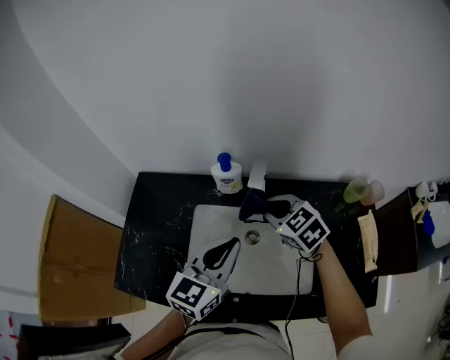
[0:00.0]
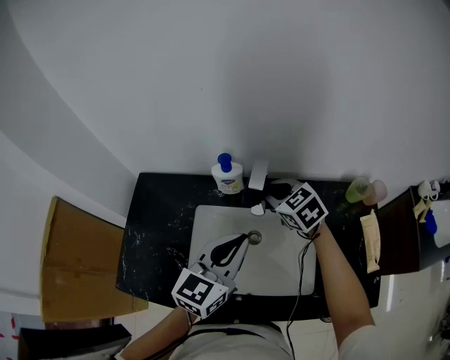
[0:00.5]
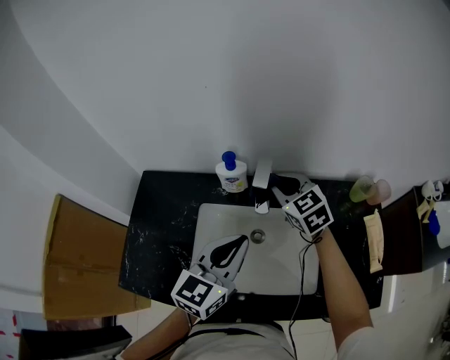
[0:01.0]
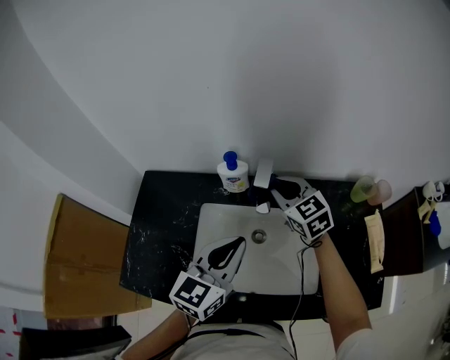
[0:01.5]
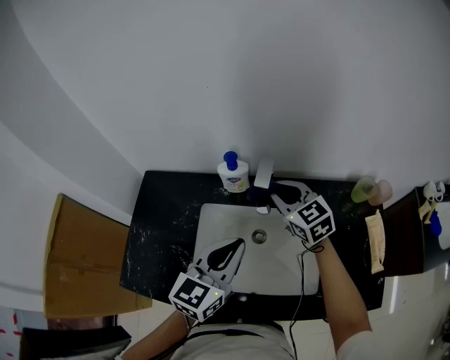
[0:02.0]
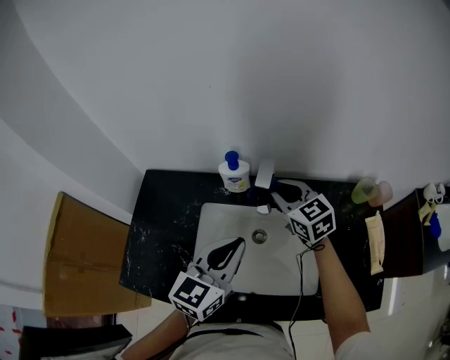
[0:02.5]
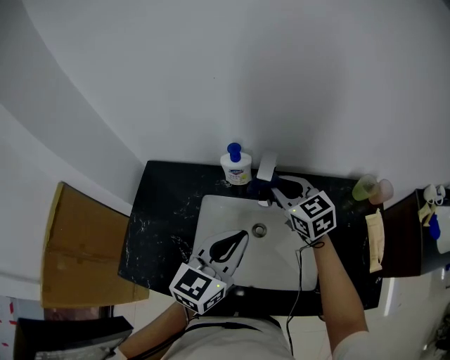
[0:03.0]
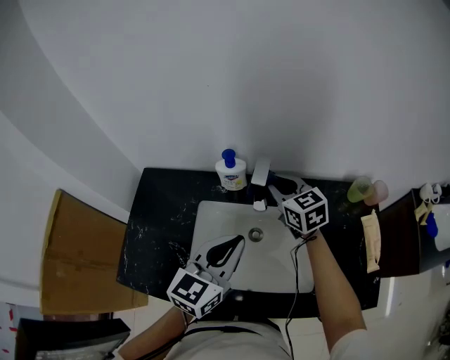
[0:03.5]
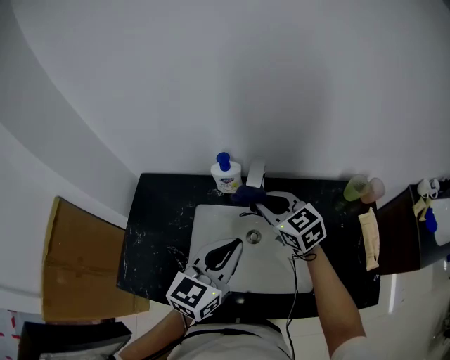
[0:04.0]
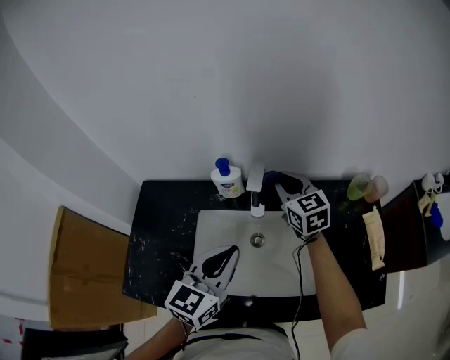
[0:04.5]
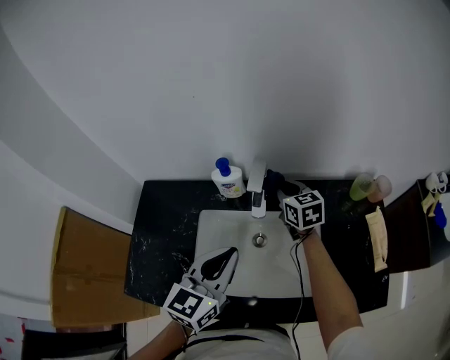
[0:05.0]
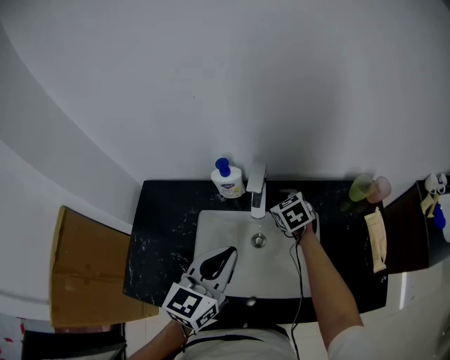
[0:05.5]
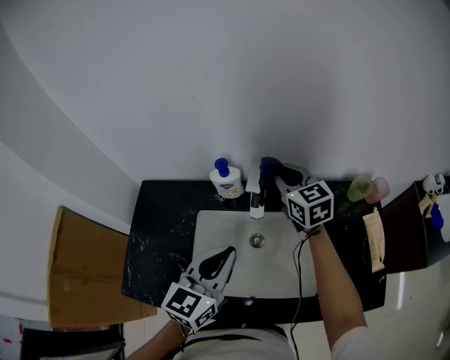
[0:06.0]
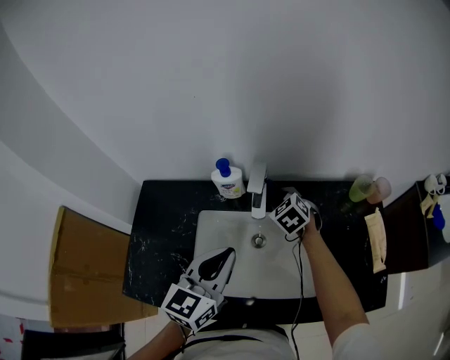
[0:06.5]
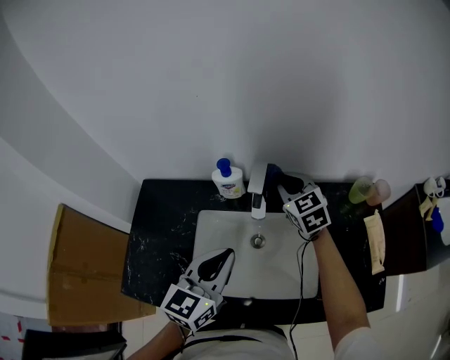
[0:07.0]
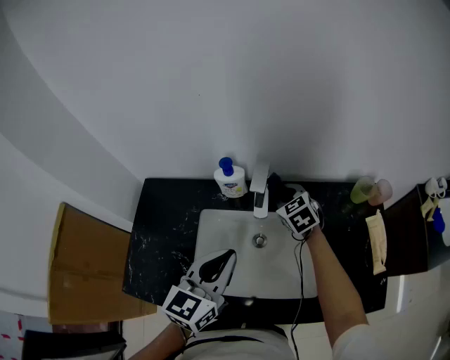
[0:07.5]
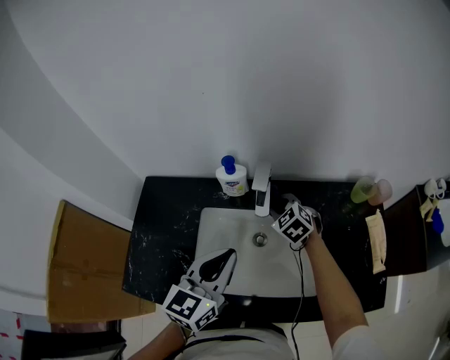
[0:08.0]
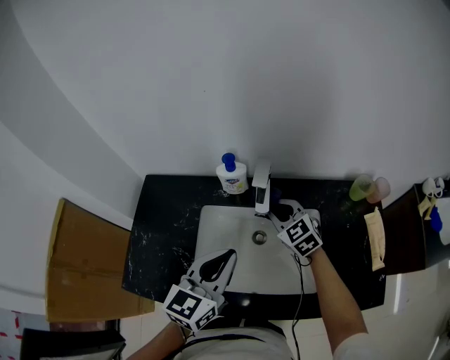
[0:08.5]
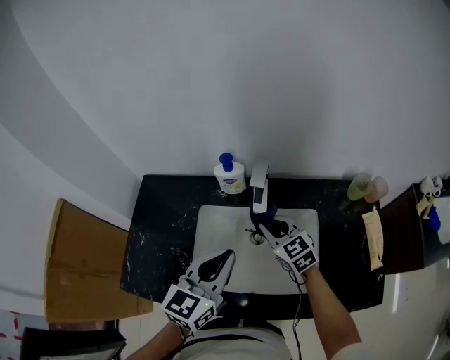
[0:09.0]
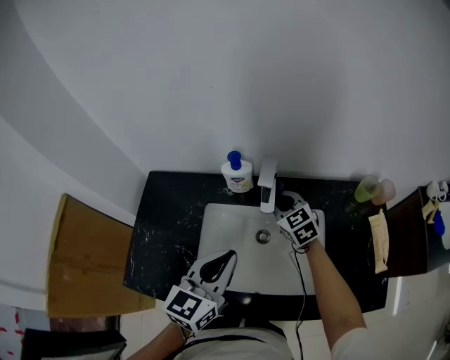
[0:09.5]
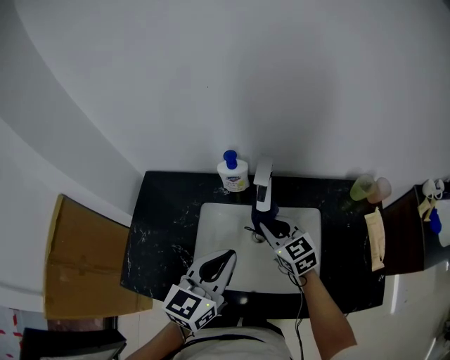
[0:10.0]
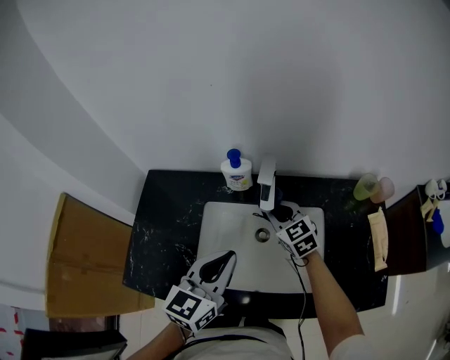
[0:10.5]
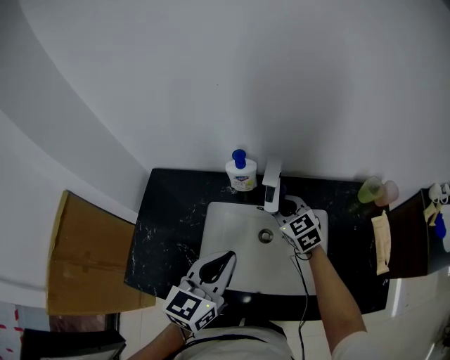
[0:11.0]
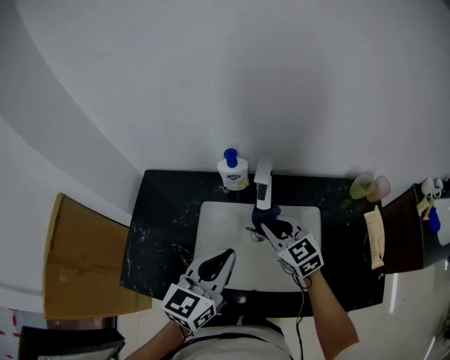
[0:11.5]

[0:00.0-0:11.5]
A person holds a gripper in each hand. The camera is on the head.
0:00.0 to 0:02.0: The right gripper moves some 5 cm.
0:02.0 to 0:04.0: The grippers move only a little.
0:04.0 to 0:06.0: The right gripper is displaced forward and to the right by approximately 10 cm, and goes downward and returns, roughly 10 cm each way.
0:06.0 to 0:07.5: The right gripper goes up and down, about 15 cm each way, reversing 2 times, and swivels approximately 30 degrees.
0:07.5 to 0:09.5: The right gripper moves about 10 cm backward and comes back.
0:09.5 to 0:11.5: The right gripper goes forward and backward, roughly 10 cm each way, reversing 2 times.

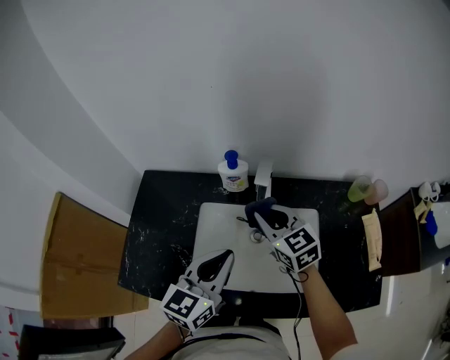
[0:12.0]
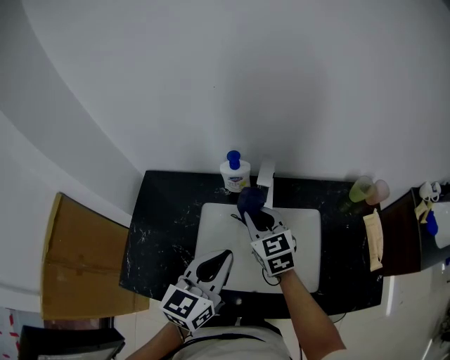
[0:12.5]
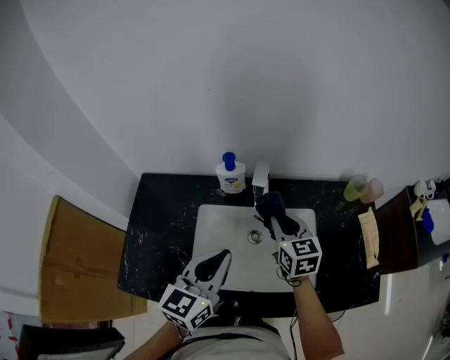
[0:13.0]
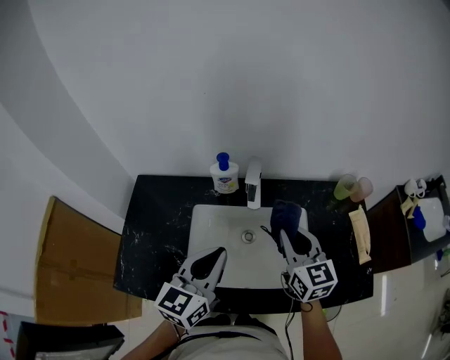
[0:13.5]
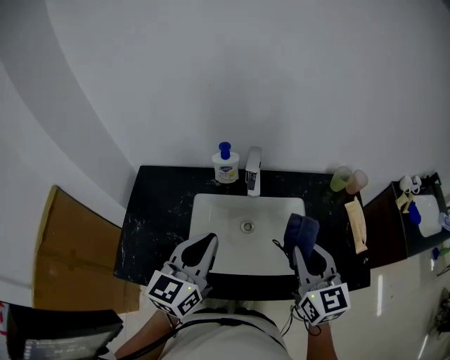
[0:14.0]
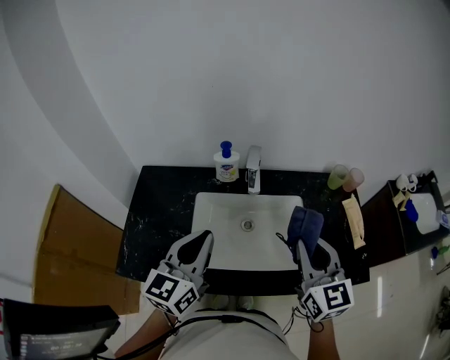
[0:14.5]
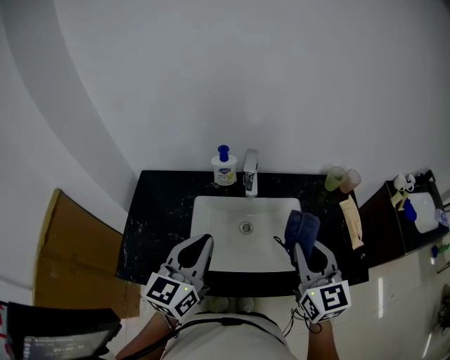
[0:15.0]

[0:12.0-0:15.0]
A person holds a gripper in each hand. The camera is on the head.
0:12.0 to 0:13.5: The right gripper heads to the right and backward, covering roughly 10 cm, and turns by approximately 20 degrees.
0:13.5 to 0:15.0: The left gripper moves about 5 cm, while the right gripper travels backward and upward by roughly 15 cm.

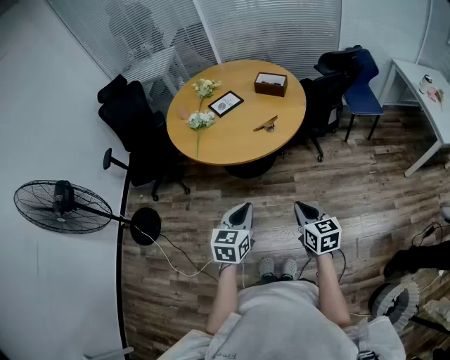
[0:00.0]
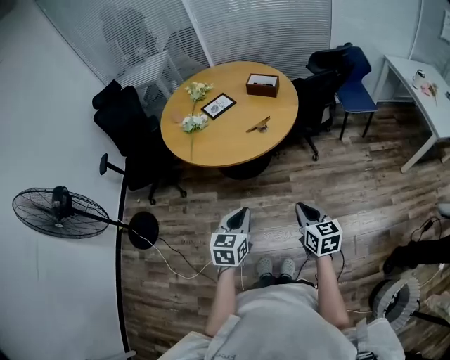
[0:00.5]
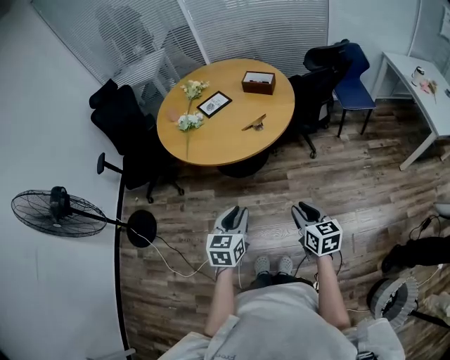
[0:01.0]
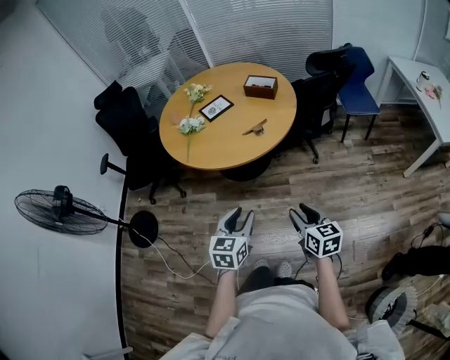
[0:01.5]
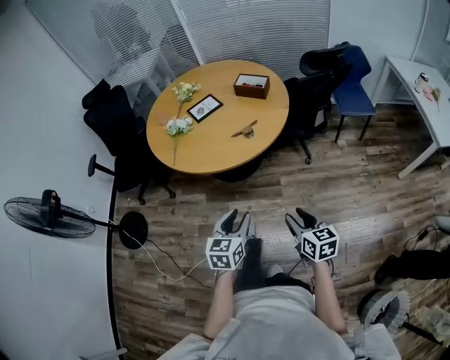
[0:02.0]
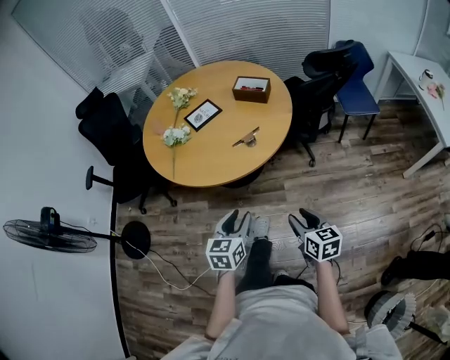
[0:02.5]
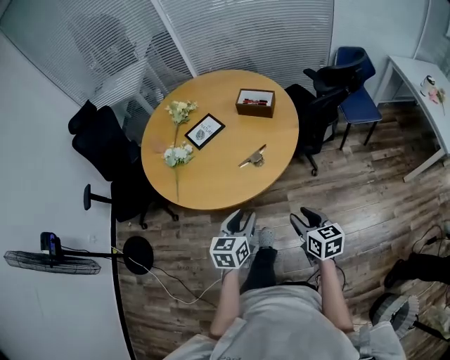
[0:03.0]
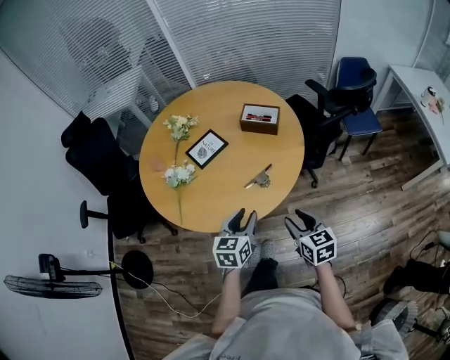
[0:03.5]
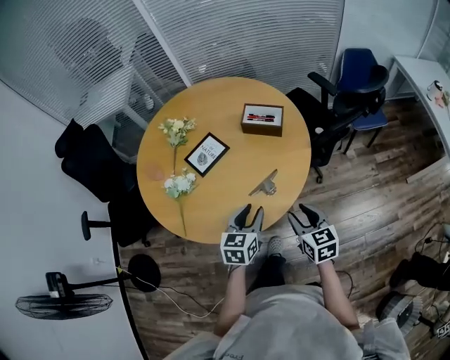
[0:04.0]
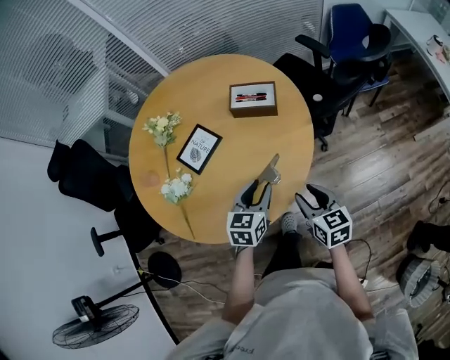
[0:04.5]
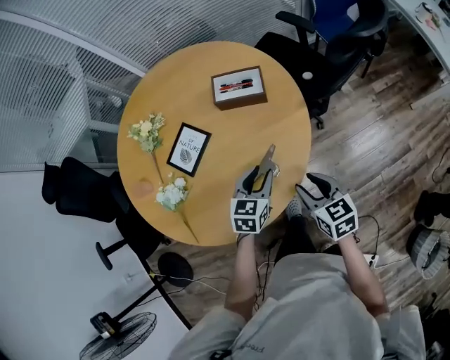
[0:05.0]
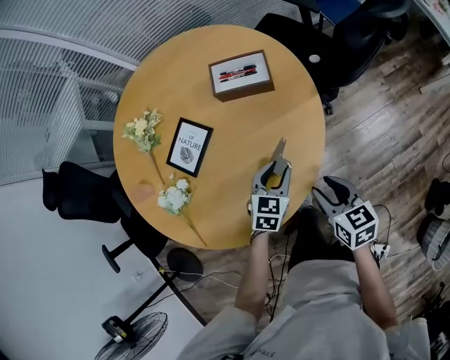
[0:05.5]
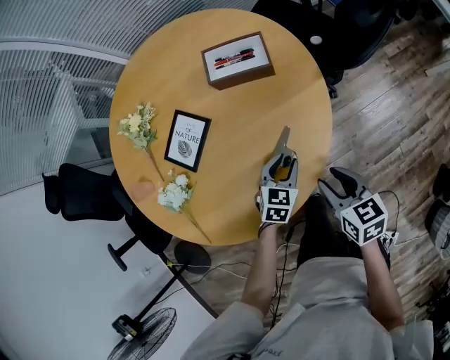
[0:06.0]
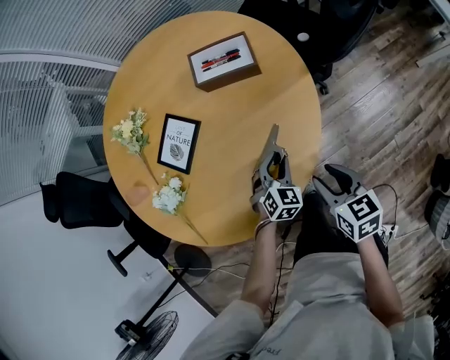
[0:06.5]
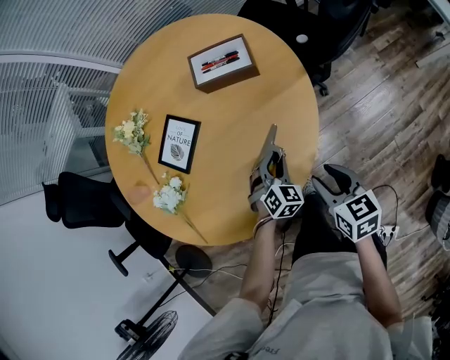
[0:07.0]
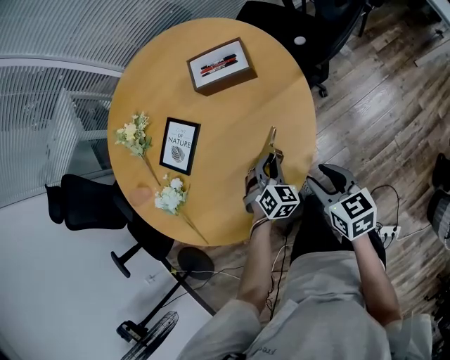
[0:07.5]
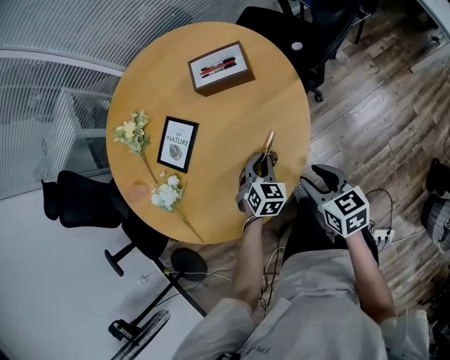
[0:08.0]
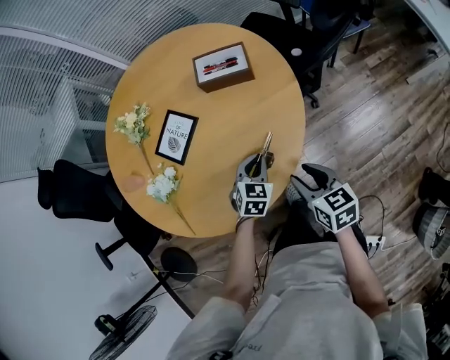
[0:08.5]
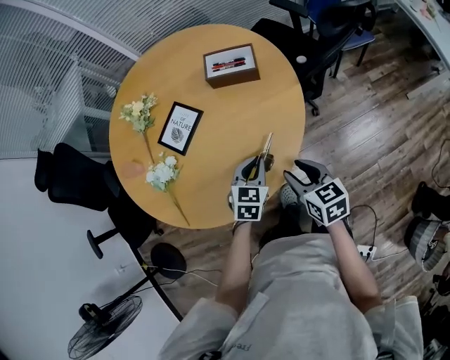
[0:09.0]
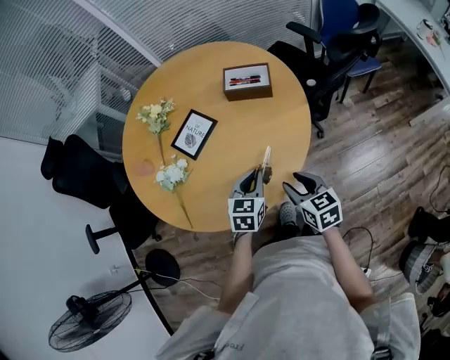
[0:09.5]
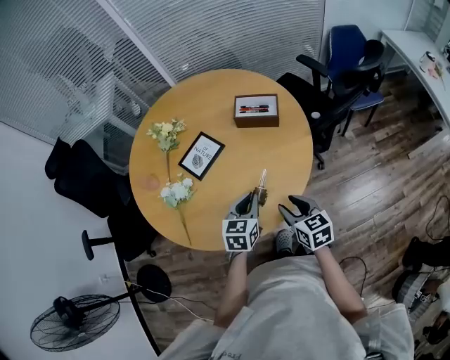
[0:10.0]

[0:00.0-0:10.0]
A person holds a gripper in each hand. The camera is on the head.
0:00.0 to 0:02.0: The left gripper moves to the right and downward, approximately 10 cm, and opens up. The right gripper is displaced to the right by roughly 10 cm, and opens.
0:02.0 to 0:04.0: Both grippers move forward, some 40 cm.
0:04.0 to 0:06.0: The left gripper travels downward and forward by some 25 cm, and turns by some 30 degrees. Meanwhile the right gripper moves downward and forward, approximately 15 cm, and changes its angle by about 20 degrees.
0:06.0 to 0:08.0: The left gripper changes its angle by about 20 degrees, and closes.
0:08.0 to 0:10.0: The right gripper heads to the left, covering roughly 5 cm; the left gripper shifts some 15 cm upward and to the left, and rotates roughly 40 degrees.

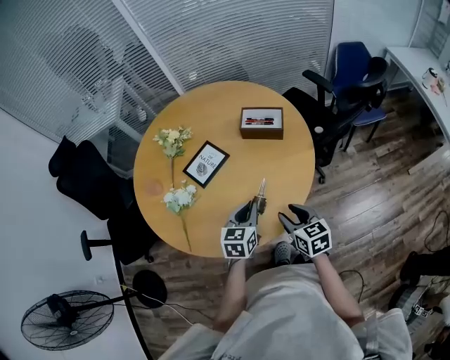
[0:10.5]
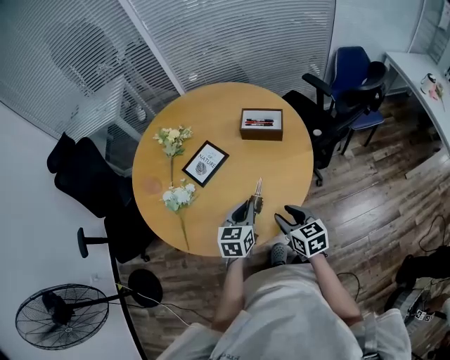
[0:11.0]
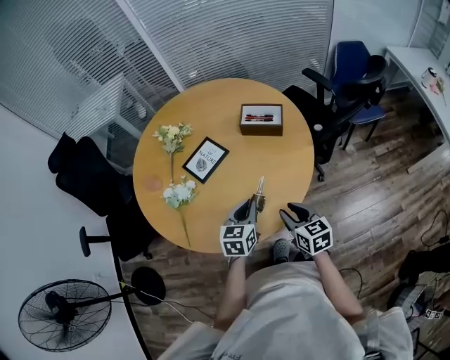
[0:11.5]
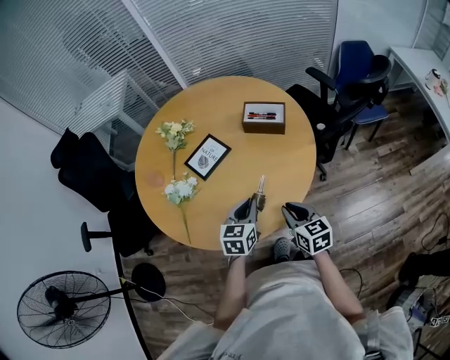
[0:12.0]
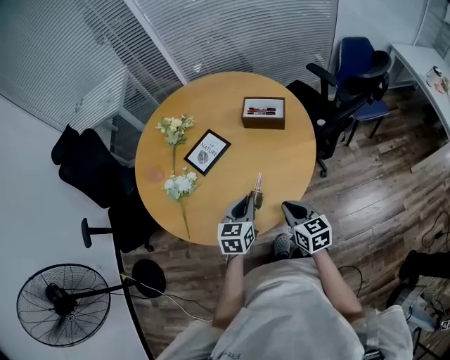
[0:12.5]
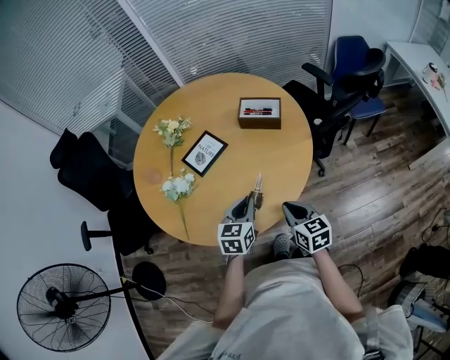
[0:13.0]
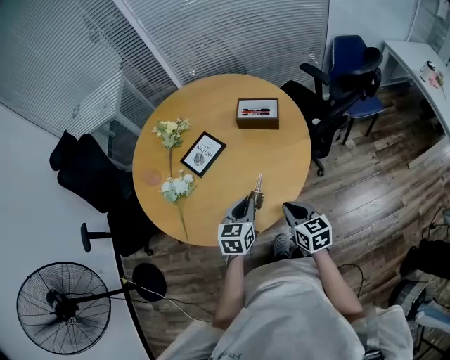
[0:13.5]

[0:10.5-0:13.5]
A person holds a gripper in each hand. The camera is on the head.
0:10.5 to 0:12.0: The right gripper closes its fingers.
0:12.0 to 0:13.5: The grippers move only a little.
